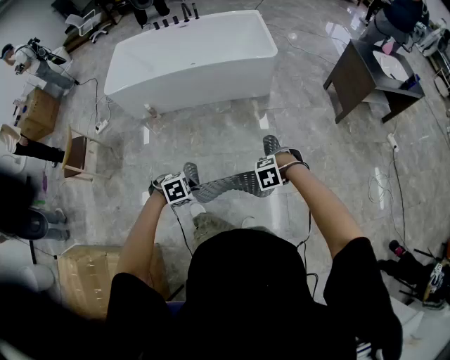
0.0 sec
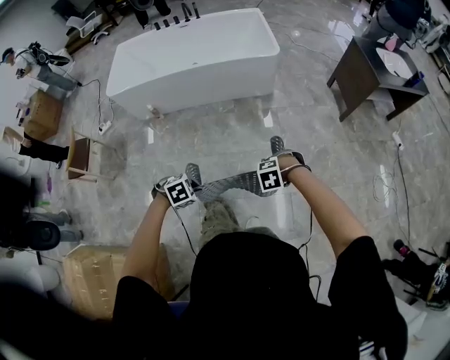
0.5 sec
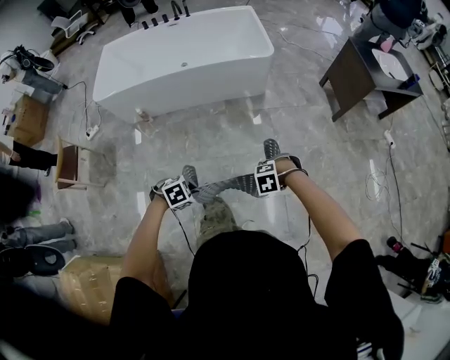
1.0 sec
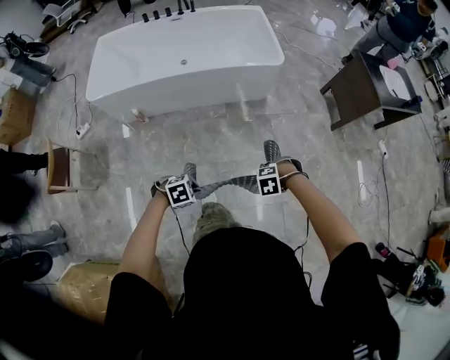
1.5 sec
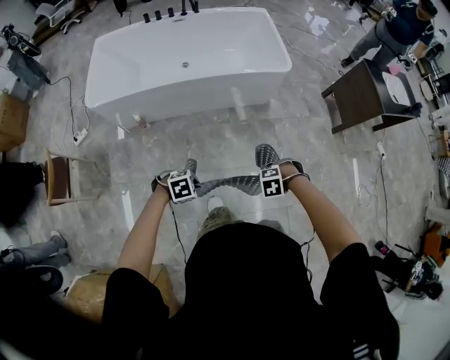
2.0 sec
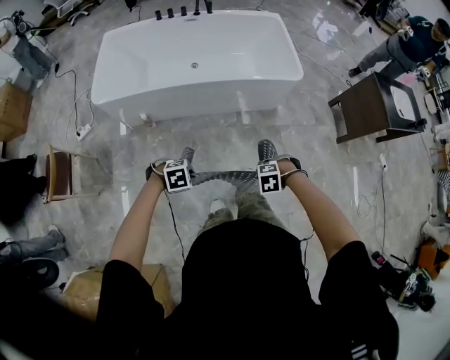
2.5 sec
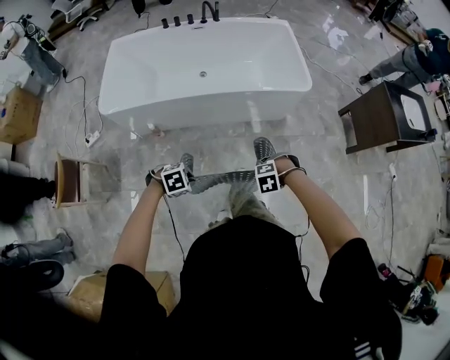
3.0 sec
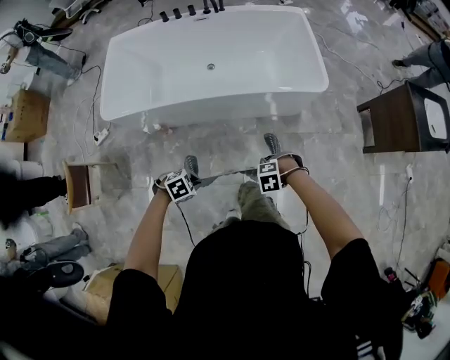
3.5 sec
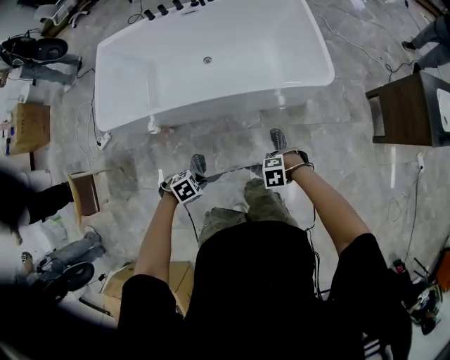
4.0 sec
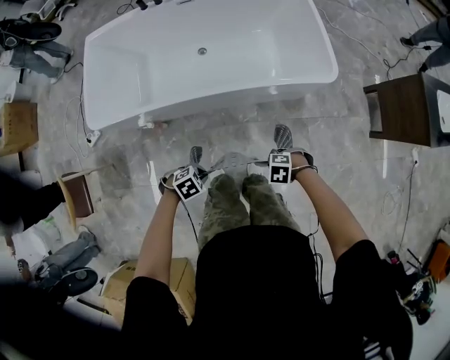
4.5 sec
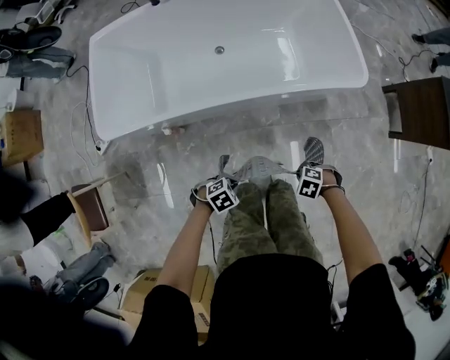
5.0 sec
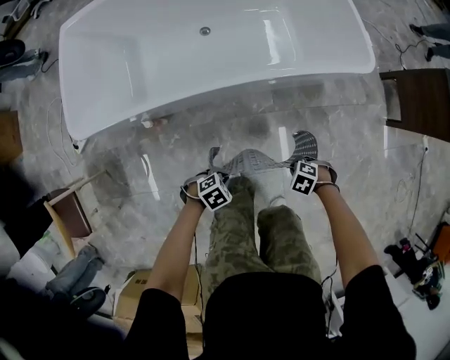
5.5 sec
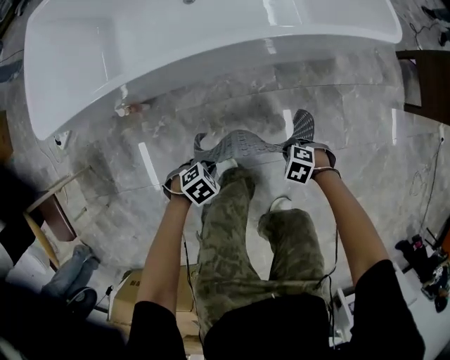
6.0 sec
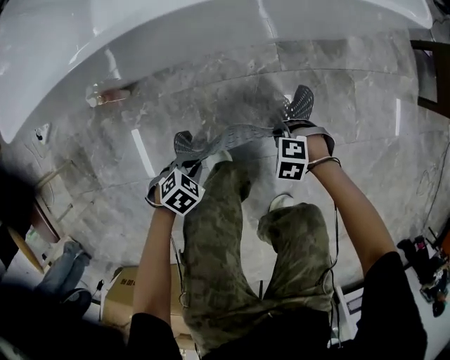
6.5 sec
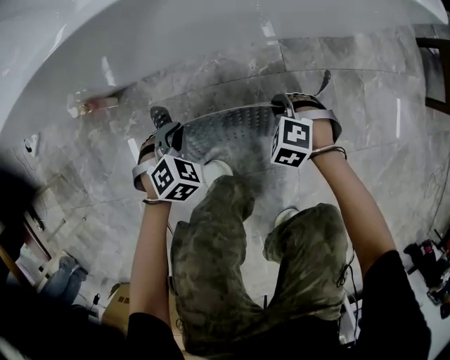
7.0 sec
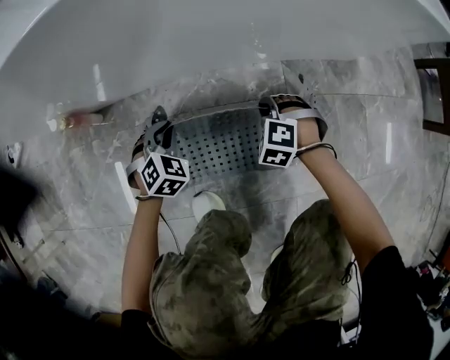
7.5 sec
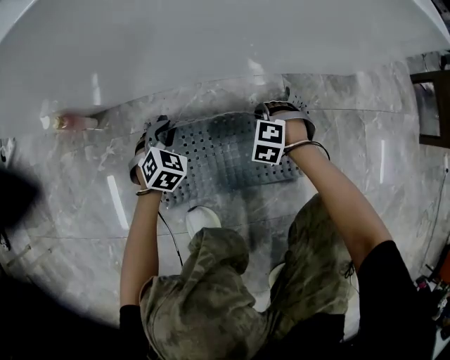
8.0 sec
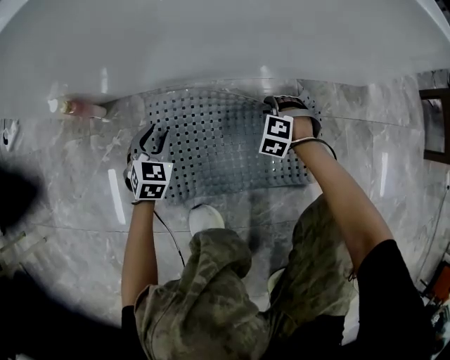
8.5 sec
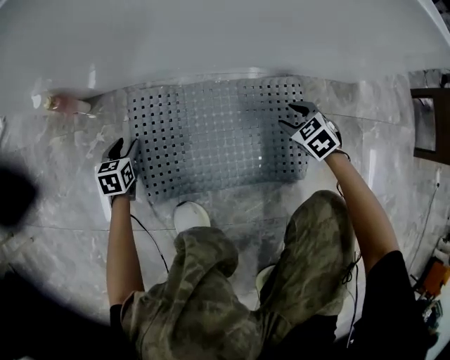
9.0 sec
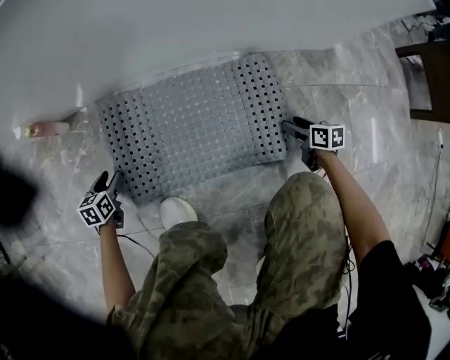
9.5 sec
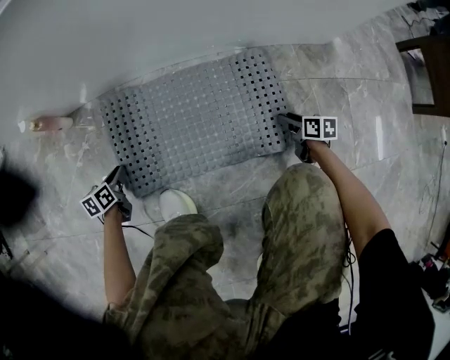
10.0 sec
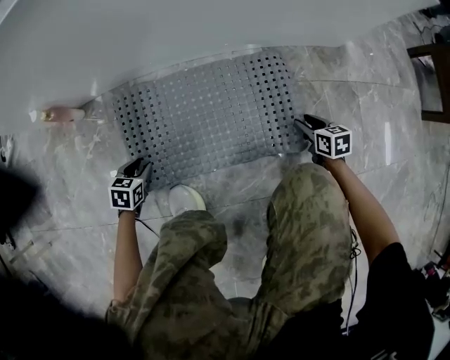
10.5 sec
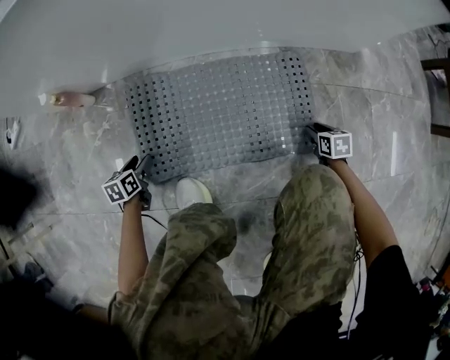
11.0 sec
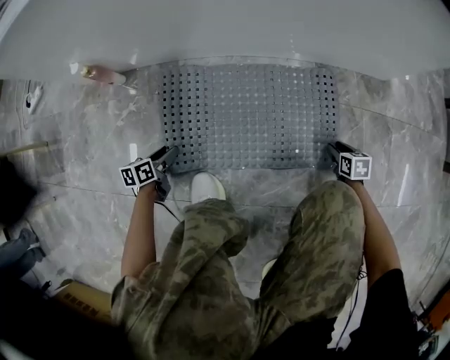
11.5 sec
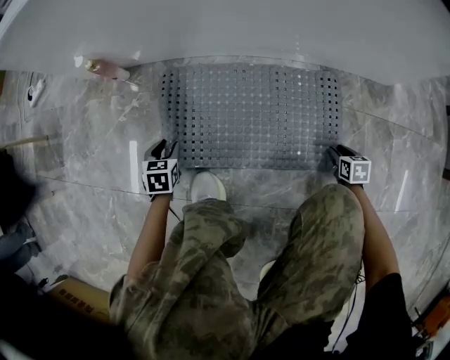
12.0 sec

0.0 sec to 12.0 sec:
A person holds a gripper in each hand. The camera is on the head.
0.0 sec to 2.0 sec: The right gripper moves about 25 cm; the left gripper moves some 30 cm.
2.0 sec to 4.0 sec: The right gripper shifts by about 30 cm. The left gripper changes place by roughly 25 cm.
4.0 sec to 6.0 sec: Both grippers travel together downward, roughly 30 cm. The right gripper swivels approximately 30 degrees.
6.0 sec to 8.0 sec: Both grippers move downward, approximately 30 cm. The right gripper turns by roughly 40 degrees. Meanwhile the left gripper turns by roughly 50 degrees.
8.0 sec to 10.0 sec: The left gripper heads backward, to the left and downward, covering about 20 cm, rolls counterclockwise, seen from behind, by some 70 degrees, and opens, then closes again; the right gripper goes approximately 25 cm to the right and backward, rotates around the line of its fingers by approximately 100 degrees, clockwise from behind, and opens its fingers.
10.0 sec to 12.0 sec: The left gripper swivels about 30 degrees, while the right gripper turns by approximately 30 degrees.

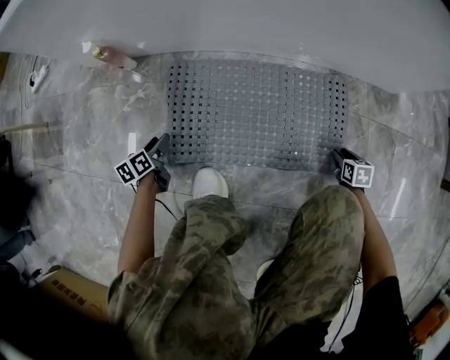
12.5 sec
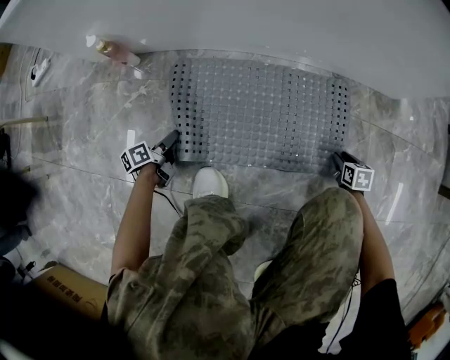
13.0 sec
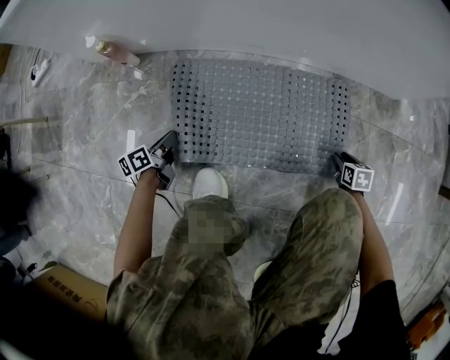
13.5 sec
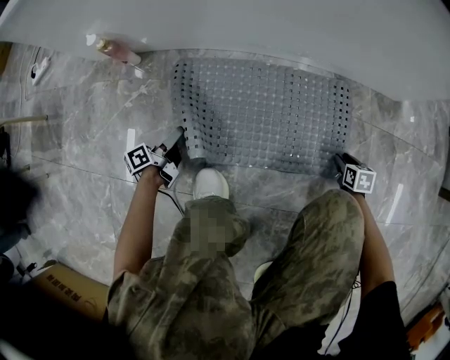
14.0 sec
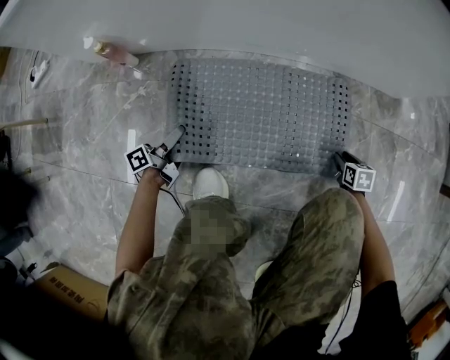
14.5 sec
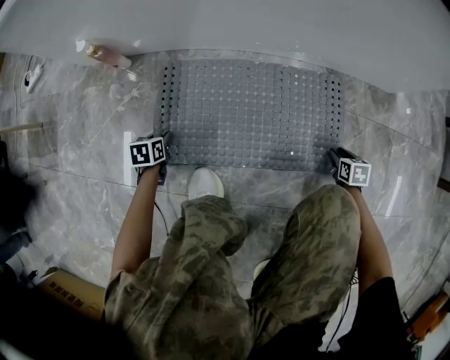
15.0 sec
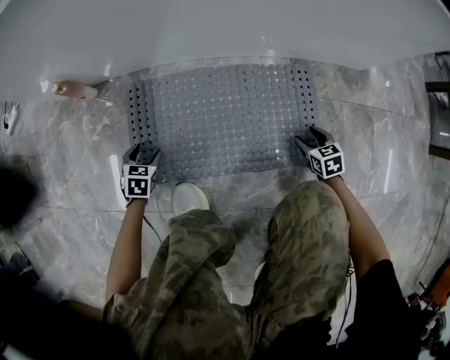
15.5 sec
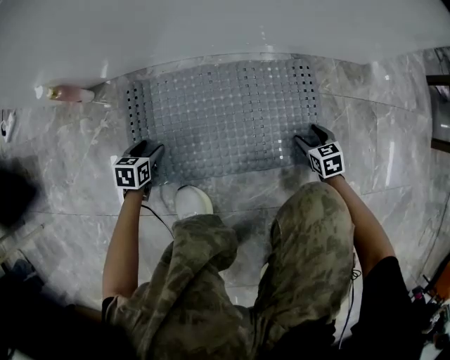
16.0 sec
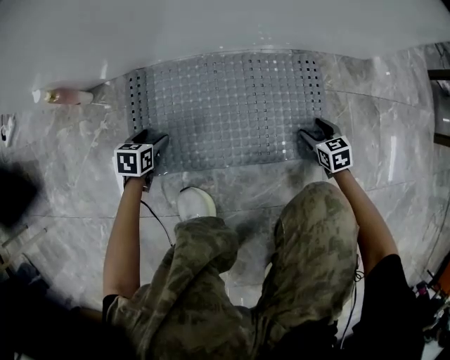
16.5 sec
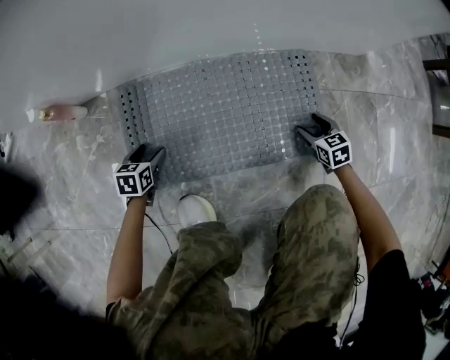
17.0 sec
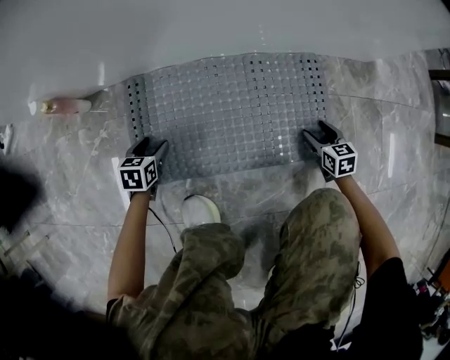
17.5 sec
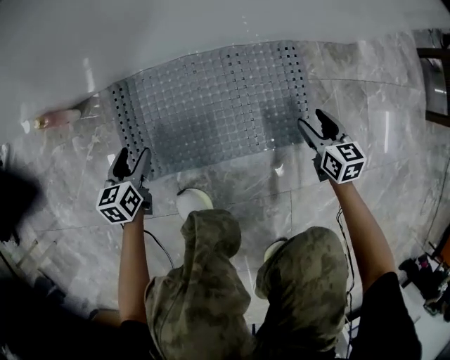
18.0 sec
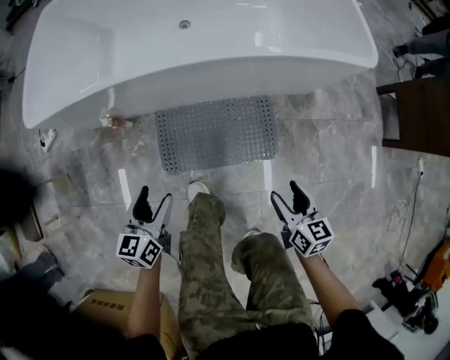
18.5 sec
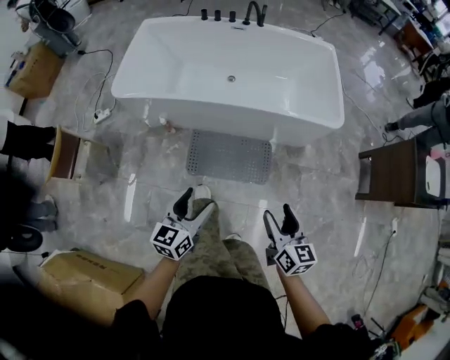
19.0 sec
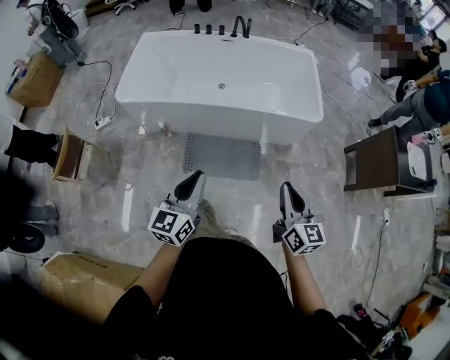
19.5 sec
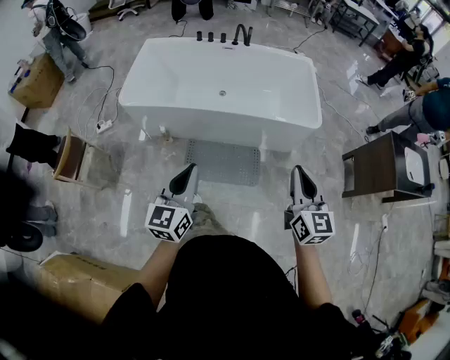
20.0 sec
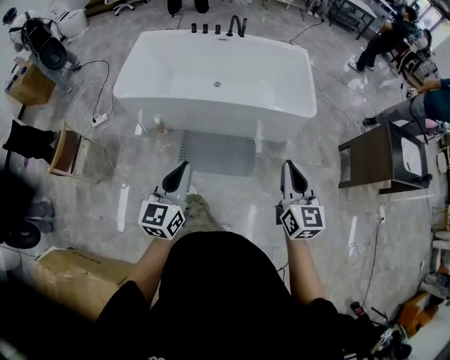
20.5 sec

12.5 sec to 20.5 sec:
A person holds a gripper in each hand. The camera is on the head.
12.5 sec to 14.5 sec: The left gripper shifts approximately 5 cm to the right, angles its fingers upward, by roughly 30 degrees, and closes up.
14.5 sec to 16.5 sec: The left gripper moves downward, about 5 cm, points its fingers about 50 degrees further downward, and opens, while the right gripper goes approximately 5 cm to the left, and opens its fingers.
16.5 sec to 18.5 sec: The grippers both shift upward by some 60 cm. The left gripper tilts its fingers some 30 degrees upward, while the right gripper rotates about 30 degrees.
18.5 sec to 20.5 sec: The right gripper travels upward by about 60 cm, turns by approximately 30 degrees, and closes. The left gripper is displaced upward and backward by approximately 60 cm, swivels about 30 degrees, and closes up.

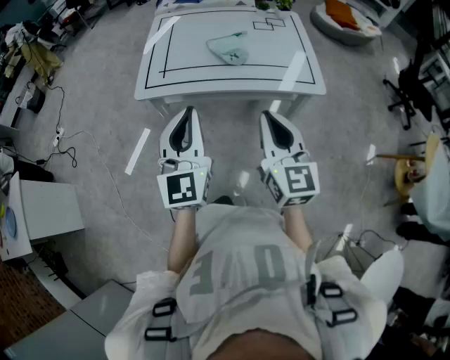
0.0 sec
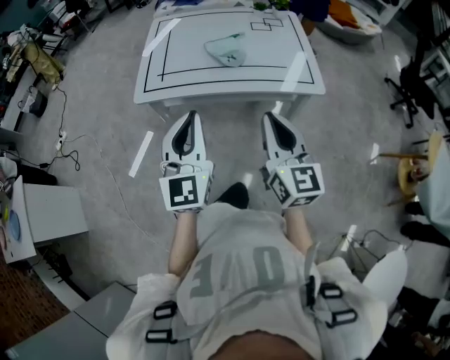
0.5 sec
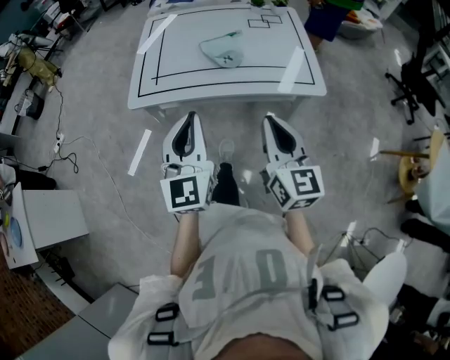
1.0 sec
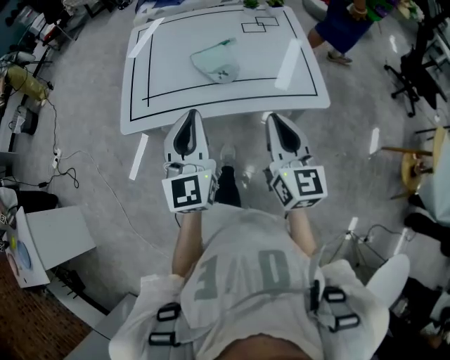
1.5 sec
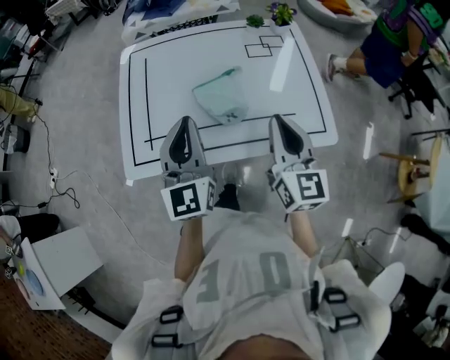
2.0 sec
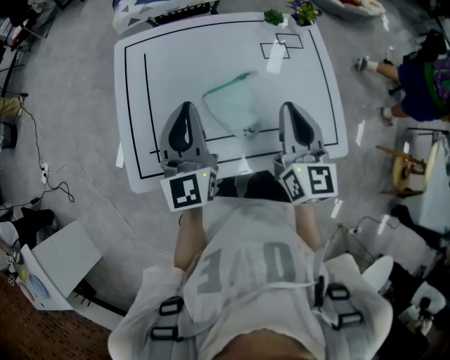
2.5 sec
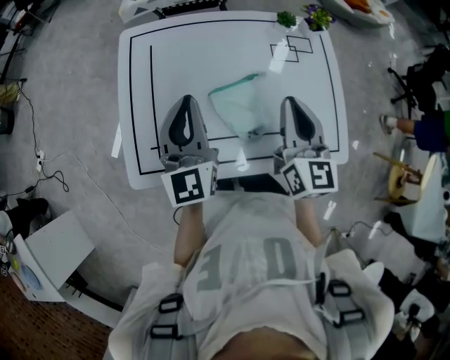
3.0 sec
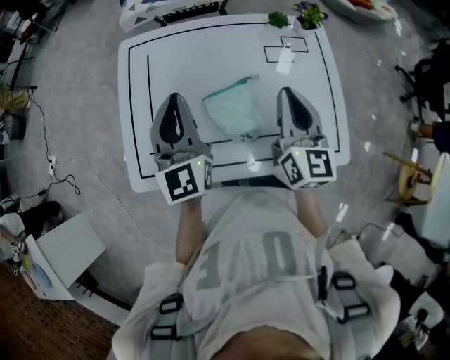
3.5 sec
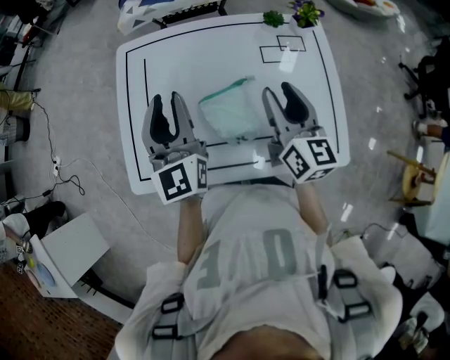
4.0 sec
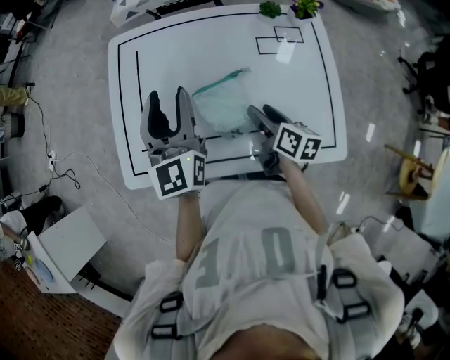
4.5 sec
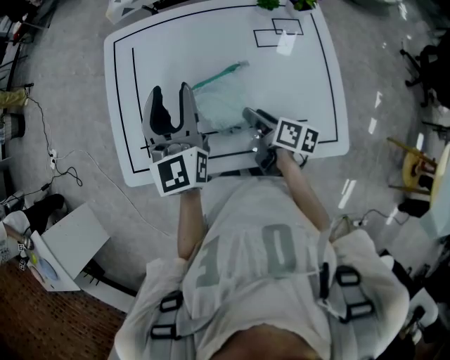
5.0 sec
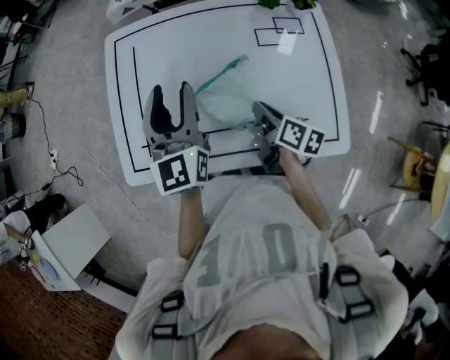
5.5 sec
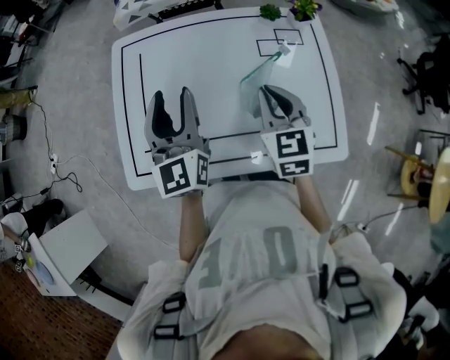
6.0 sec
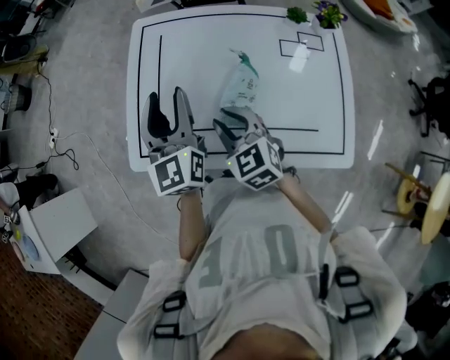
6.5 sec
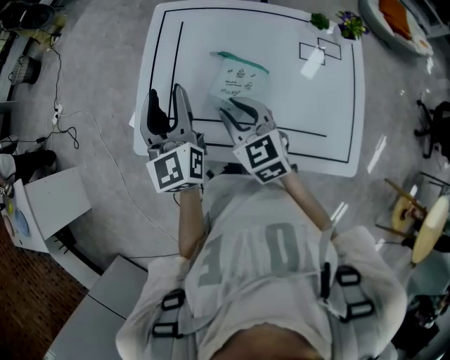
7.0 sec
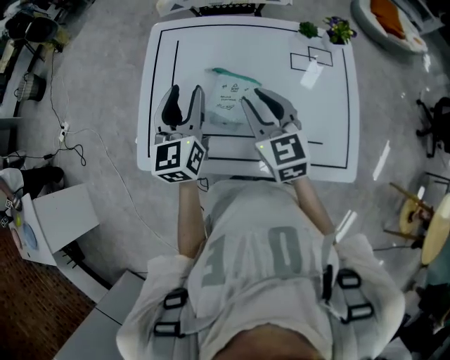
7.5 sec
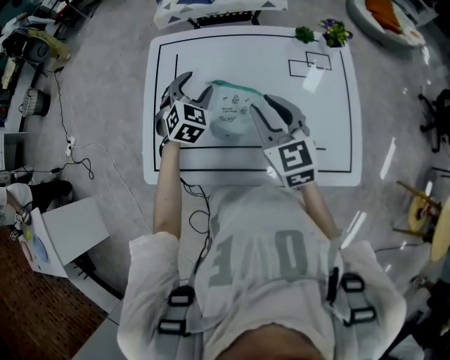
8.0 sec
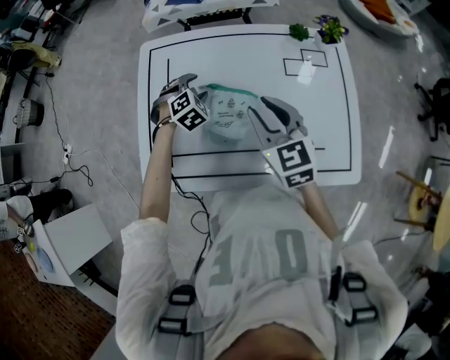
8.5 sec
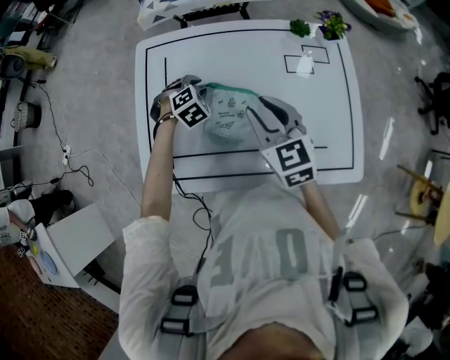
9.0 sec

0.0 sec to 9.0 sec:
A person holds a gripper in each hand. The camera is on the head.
0.0 sec to 2.0 sec: Both grippers move forward, some 30 cm.
2.0 sec to 4.5 sec: The left gripper goes approximately 15 cm forward, and opens its fingers. Meanwhile the right gripper shifts approximately 25 cm downward and forward, swivels roughly 50 degrees, and opens up.
4.5 sec to 7.0 sec: The right gripper shifts roughly 20 cm to the left and upward, rotates around the line of its fingers by about 60 degrees, counterclockwise from behind, and closes its fingers; the left gripper heads to the left, covering approximately 10 cm.
7.0 sec to 9.0 sec: The right gripper heads to the right and forward, covering approximately 10 cm, while the left gripper heads downward, forward and to the right, covering about 30 cm, and angles its fingers downward, by some 60 degrees.
